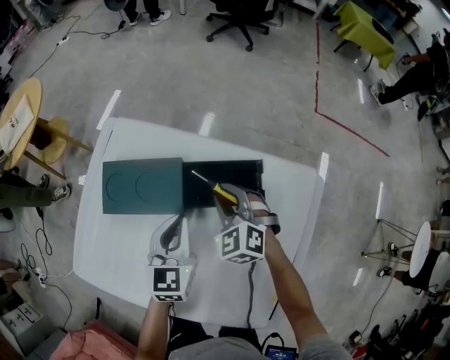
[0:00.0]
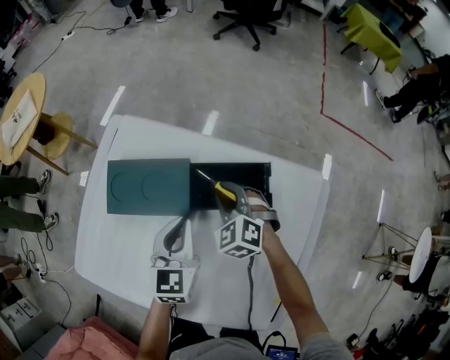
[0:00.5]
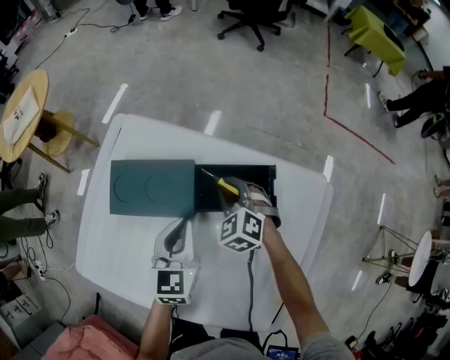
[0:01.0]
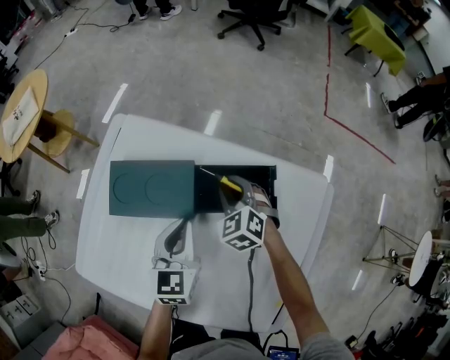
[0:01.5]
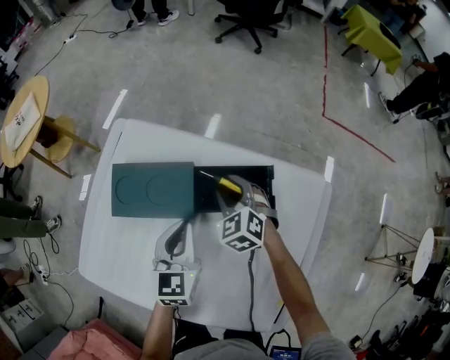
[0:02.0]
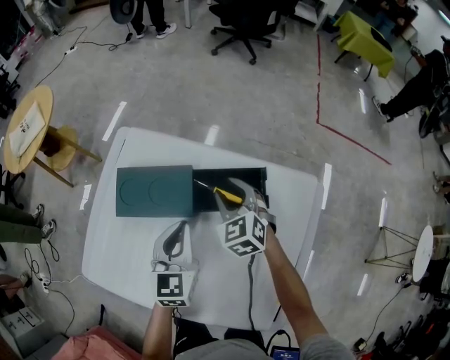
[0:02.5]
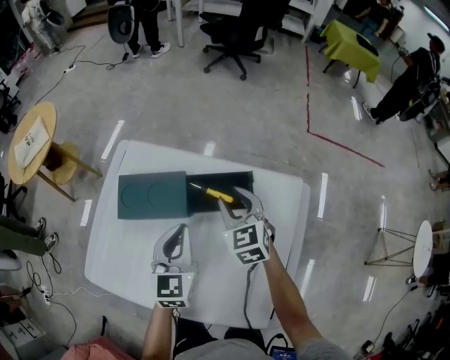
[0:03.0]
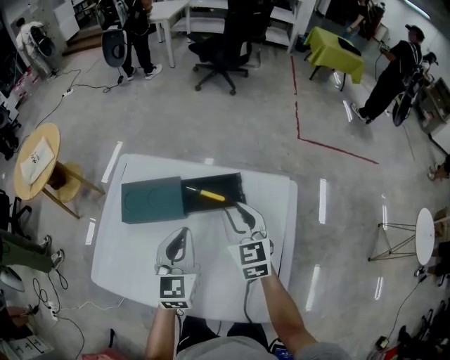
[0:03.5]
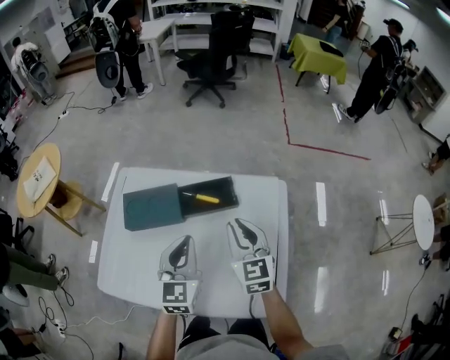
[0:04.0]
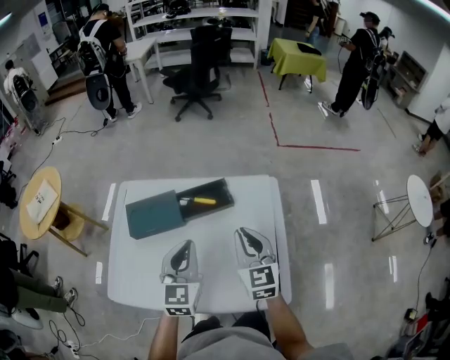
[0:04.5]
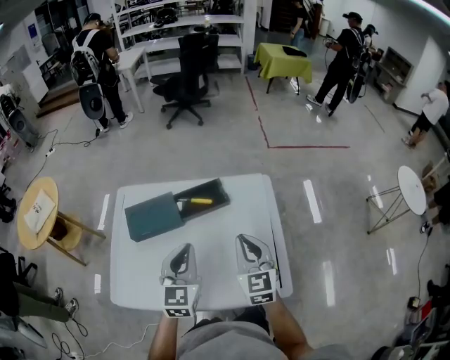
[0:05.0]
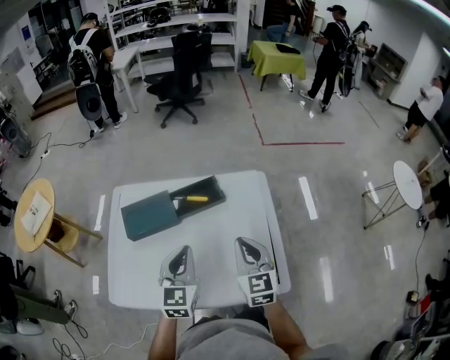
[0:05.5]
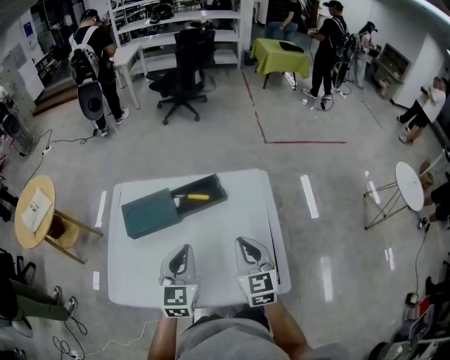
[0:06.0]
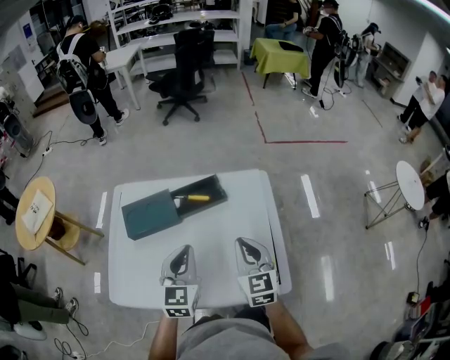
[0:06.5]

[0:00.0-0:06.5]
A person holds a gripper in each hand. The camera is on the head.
0:00.0 to 0:02.0: The right gripper moves approximately 5 cm.
0:02.0 to 0:04.5: The left gripper shifts roughly 20 cm upward and backward, and swivels some 20 degrees. The right gripper is displaced backward, upward and to the right by some 35 cm, turns by some 50 degrees, and closes.
0:04.5 to 0:06.5: The right gripper goes roughly 5 cm backward.

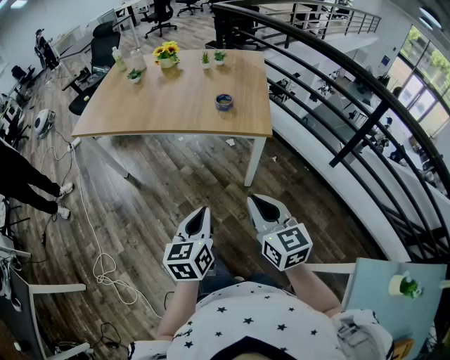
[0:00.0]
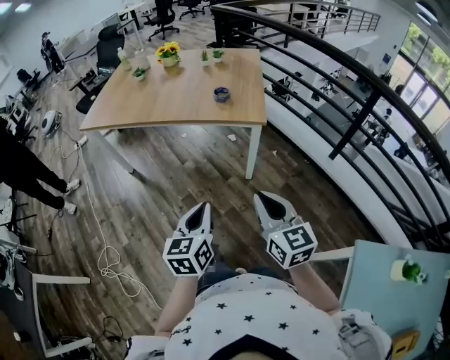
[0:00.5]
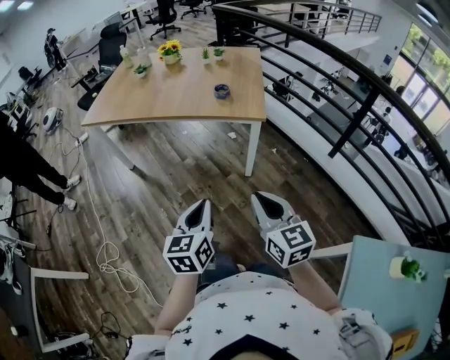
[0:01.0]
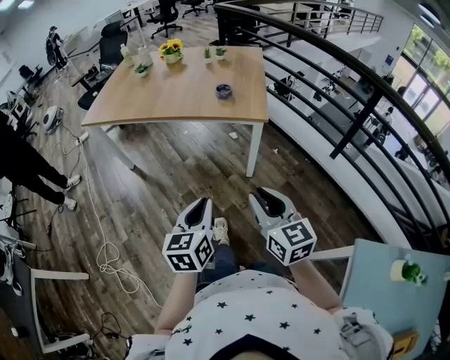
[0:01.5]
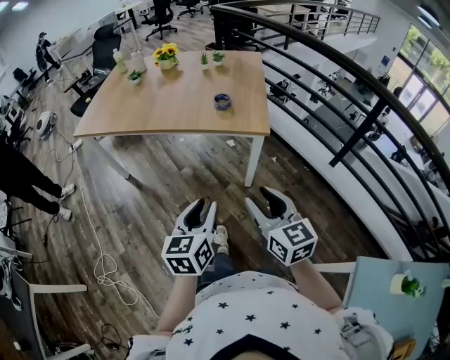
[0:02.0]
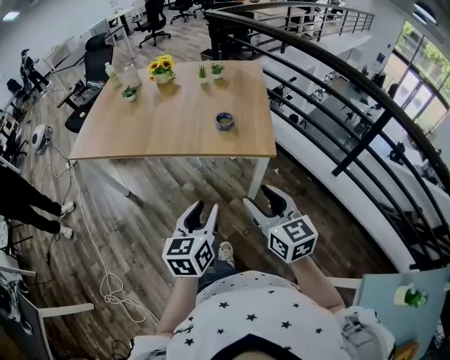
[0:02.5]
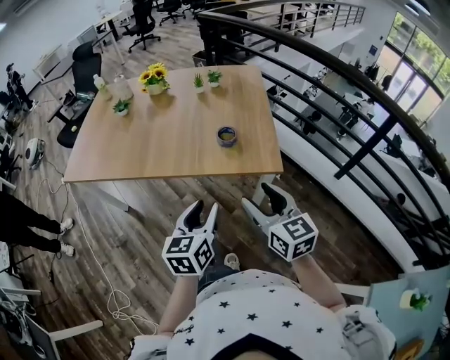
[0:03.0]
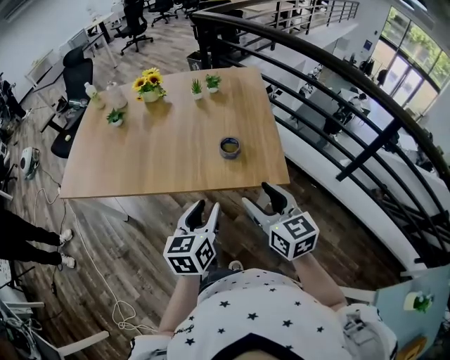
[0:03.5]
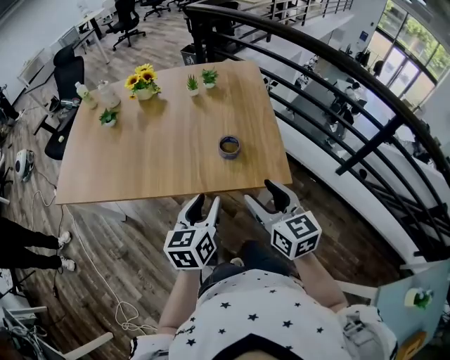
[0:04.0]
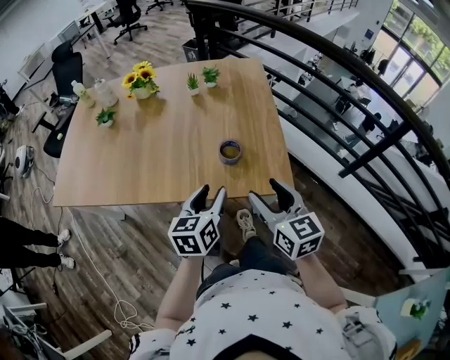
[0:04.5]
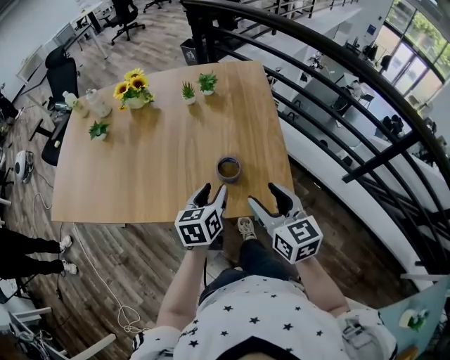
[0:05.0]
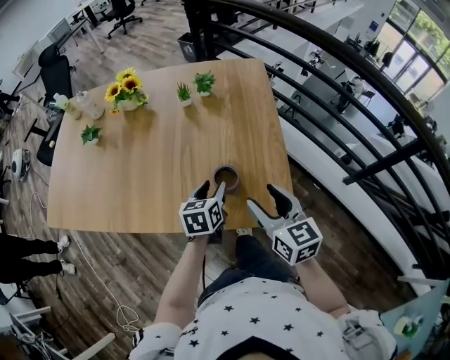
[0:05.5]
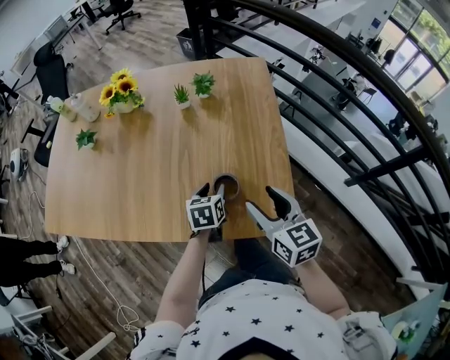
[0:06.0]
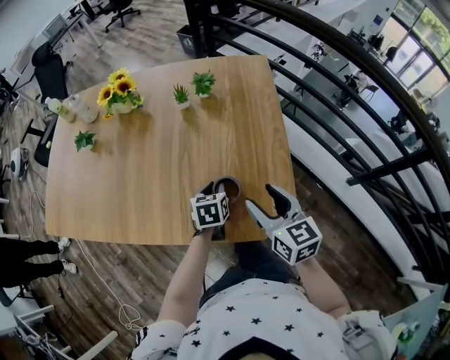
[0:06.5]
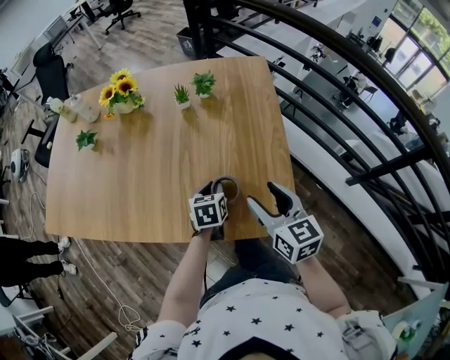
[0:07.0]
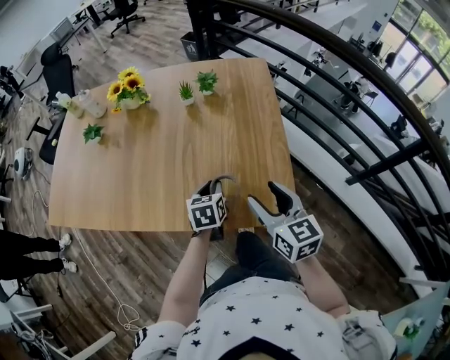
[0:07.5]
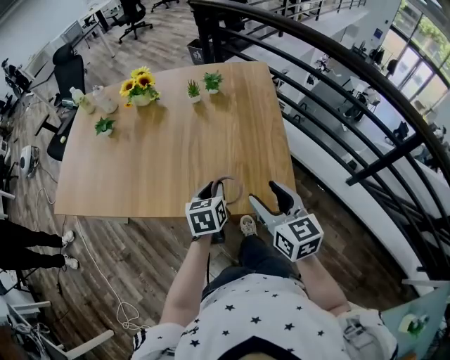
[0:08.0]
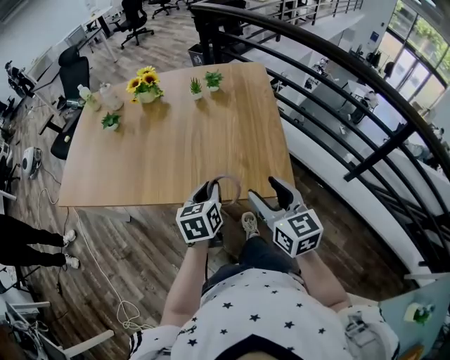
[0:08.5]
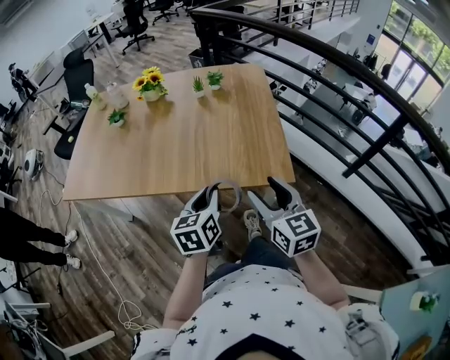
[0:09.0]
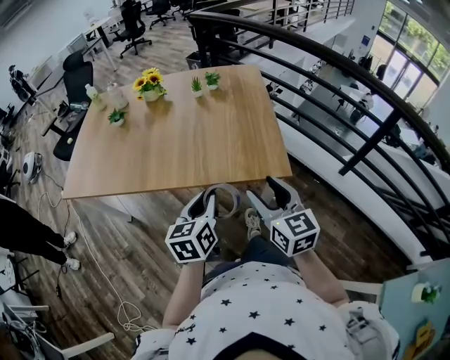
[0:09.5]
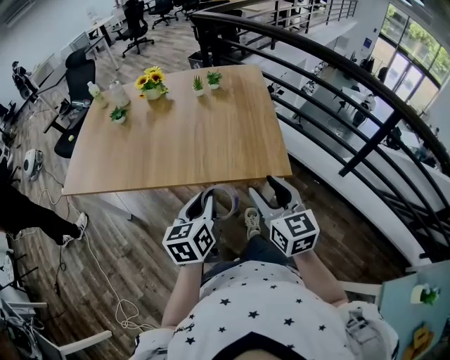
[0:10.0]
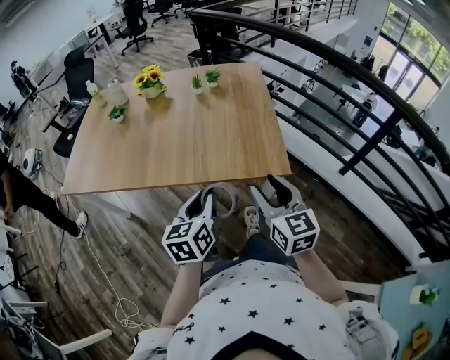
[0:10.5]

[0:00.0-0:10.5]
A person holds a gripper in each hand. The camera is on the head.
0:00.0 to 0:02.0: The left gripper reaches some 10 cm backward, then returns, and opens its fingers; the right gripper reaches about 10 cm backward, then returns, and opens up.
0:02.0 to 0:04.0: The two grippers go roughly 35 cm forward. The right gripper opens.
0:04.0 to 0:06.5: The right gripper moves forward, roughly 20 cm. The left gripper goes roughly 35 cm forward and downward, and swivels some 30 degrees.
0:06.5 to 0:08.5: The right gripper is displaced backward by approximately 15 cm, while the left gripper heads backward and upward, covering approximately 25 cm.
0:08.5 to 0:10.5: The left gripper shifts about 15 cm backward and upward. Meanwhile the right gripper moves backward, about 10 cm.

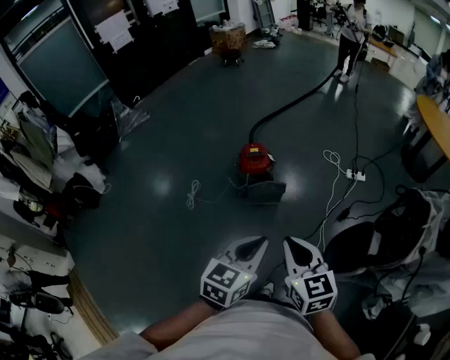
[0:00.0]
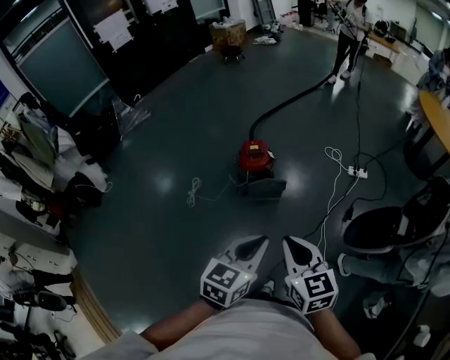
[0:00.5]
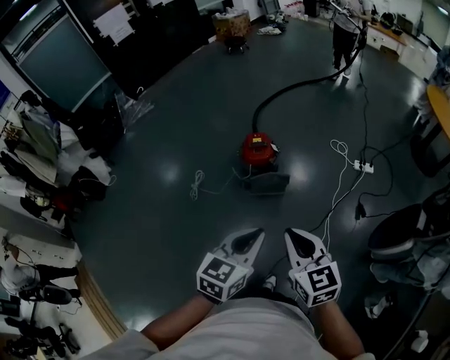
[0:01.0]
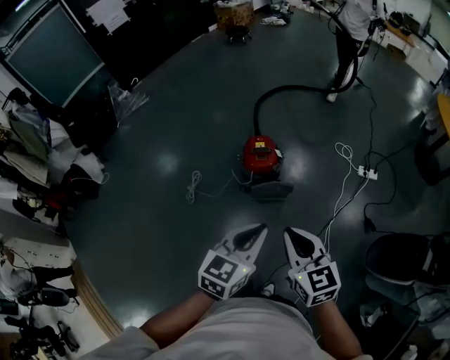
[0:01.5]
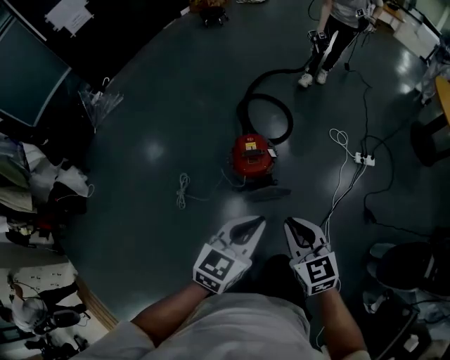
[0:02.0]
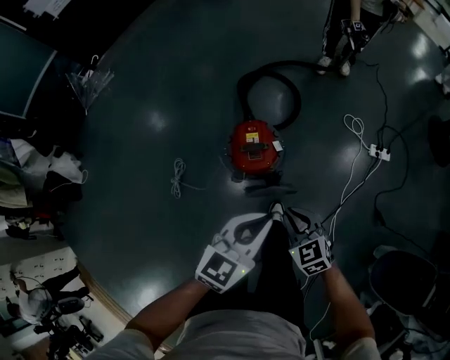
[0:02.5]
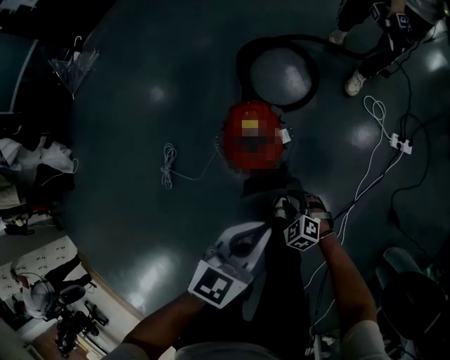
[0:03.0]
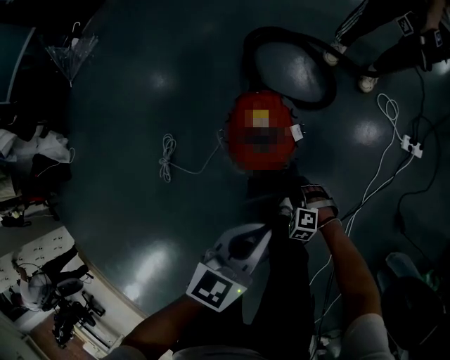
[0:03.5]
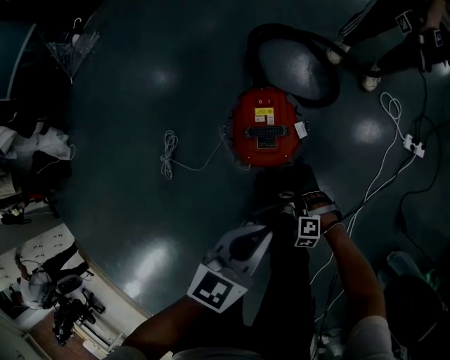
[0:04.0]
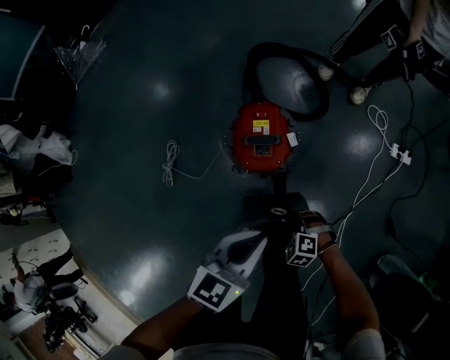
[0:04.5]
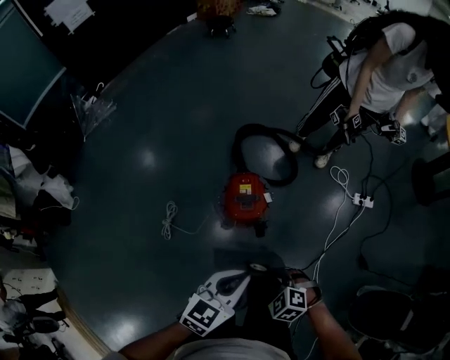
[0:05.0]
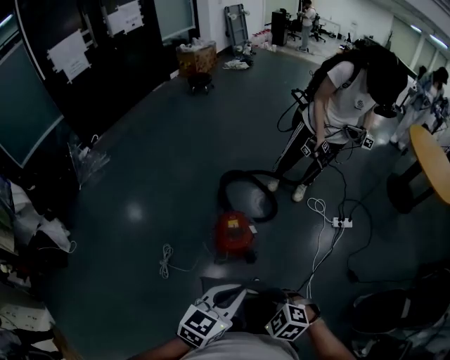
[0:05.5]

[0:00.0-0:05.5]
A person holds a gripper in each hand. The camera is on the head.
0:00.0 to 0:02.0: Both grippers travel together forward, about 30 cm.
0:02.0 to 0:03.5: The left gripper moves downward and forward, approximately 35 cm. Meanwhile the right gripper shifts some 60 cm downward, points its fingers about 40 degrees further downward, and opens up.
0:03.5 to 0:05.5: The right gripper goes some 60 cm upward, rotates some 30 degrees, and closes its fingers; the left gripper travels upward by some 35 cm.

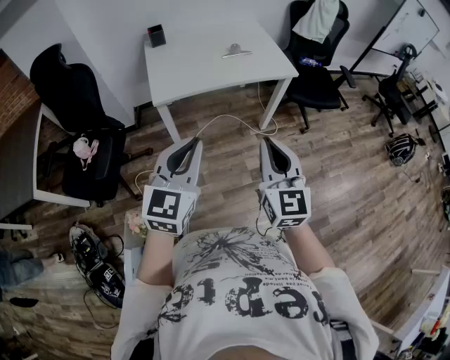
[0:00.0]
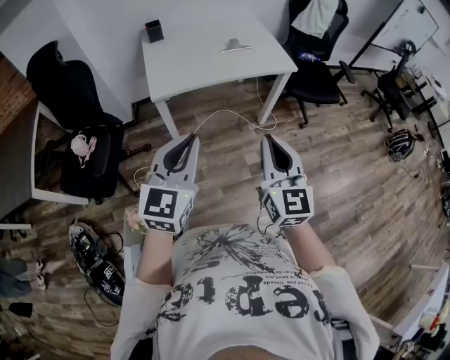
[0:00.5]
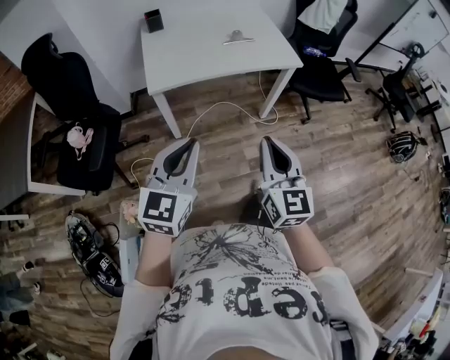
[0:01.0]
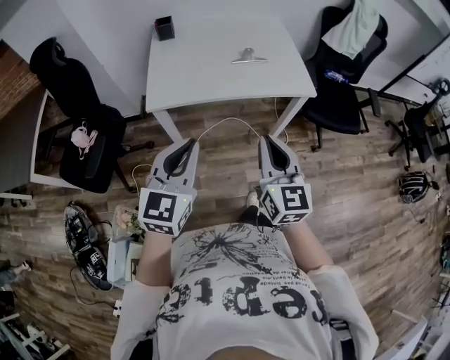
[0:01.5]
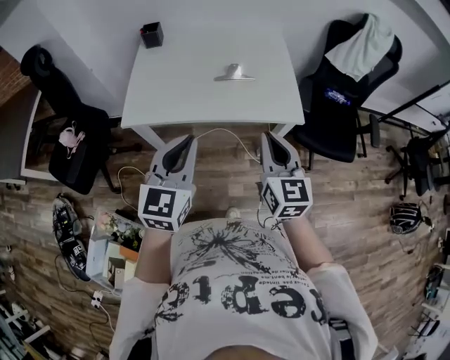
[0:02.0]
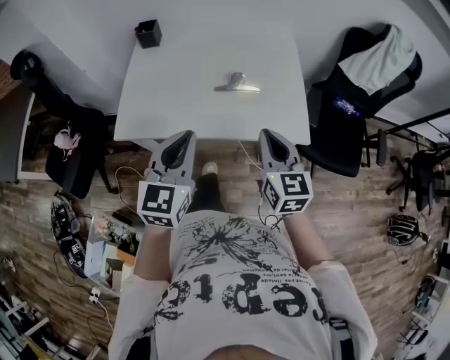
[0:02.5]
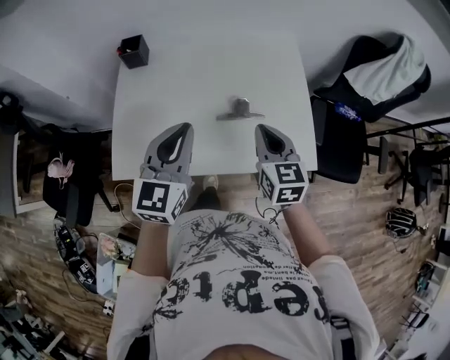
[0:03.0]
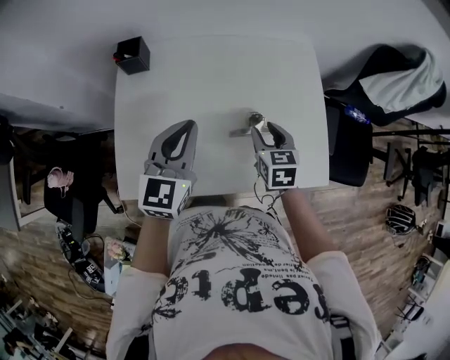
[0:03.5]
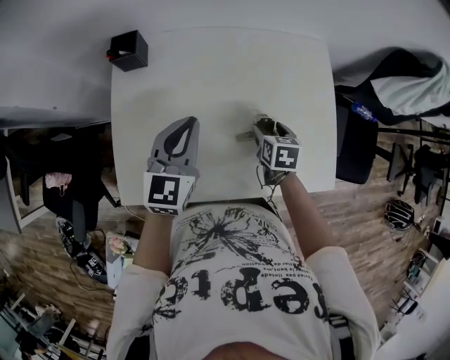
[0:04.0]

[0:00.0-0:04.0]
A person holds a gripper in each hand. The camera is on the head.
0:00.0 to 0:02.0: The two grippers go roughly 40 cm forward and to the right.
0:02.0 to 0:04.0: The pair of grippers is taken forward, about 40 cm. The right gripper moves downward, approximately 30 cm, tips its fingers downward by roughly 50 degrees, and opens up.
